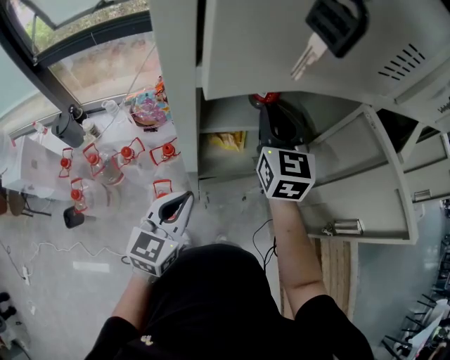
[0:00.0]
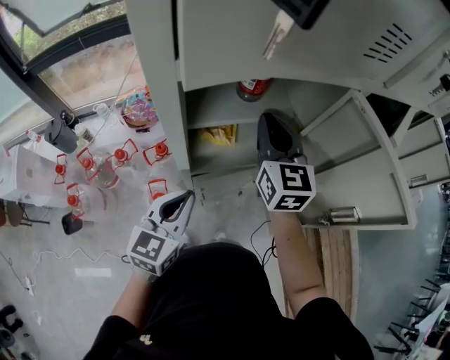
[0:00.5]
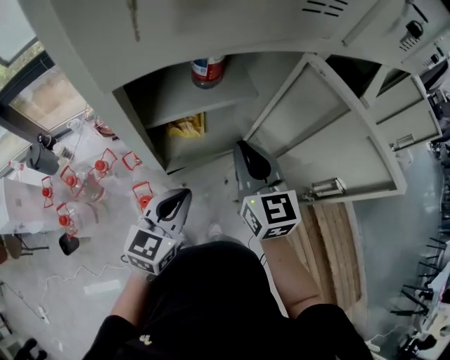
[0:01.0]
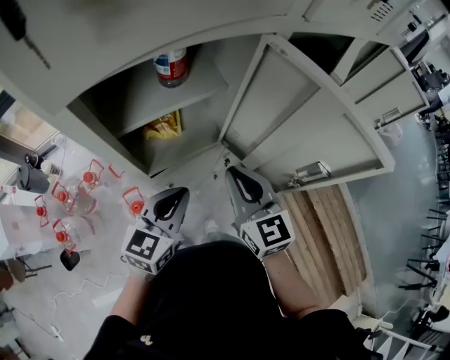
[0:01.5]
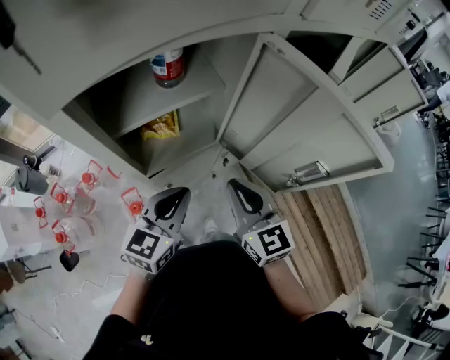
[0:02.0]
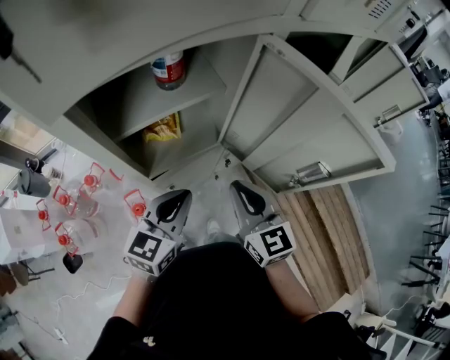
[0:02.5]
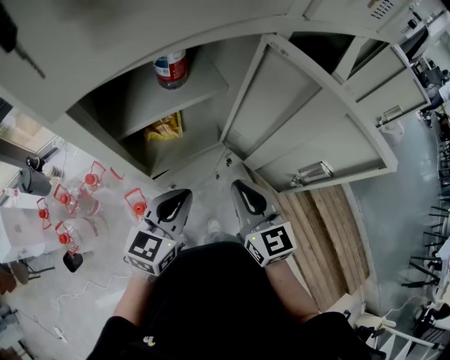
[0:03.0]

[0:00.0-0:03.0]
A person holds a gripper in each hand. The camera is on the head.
0:00.0 to 0:01.5: The left gripper is displaced to the right by some 10 cm, and swivels some 20 degrees, while the right gripper heads backward, to the right and downward, covering about 20 cm.
0:01.5 to 0:03.0: The grippers move only a little.

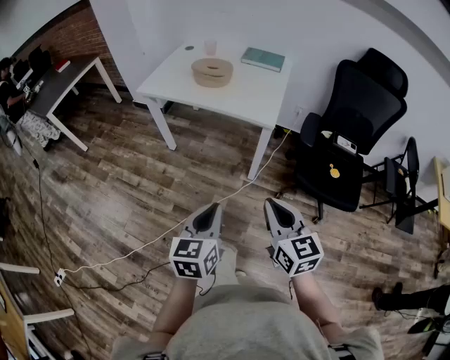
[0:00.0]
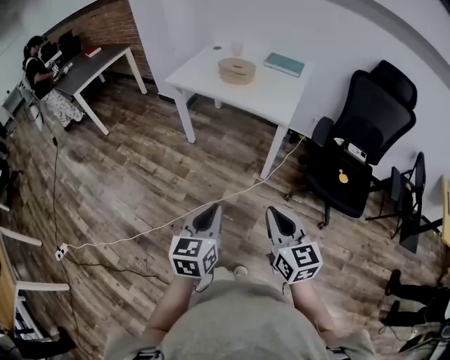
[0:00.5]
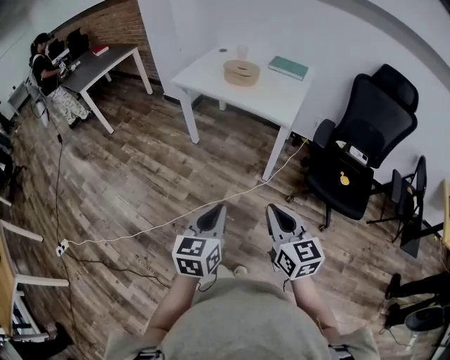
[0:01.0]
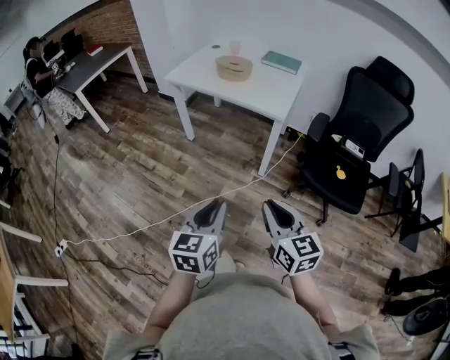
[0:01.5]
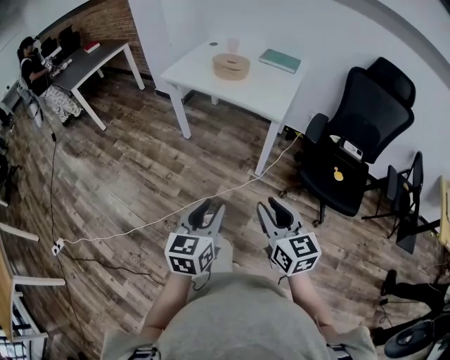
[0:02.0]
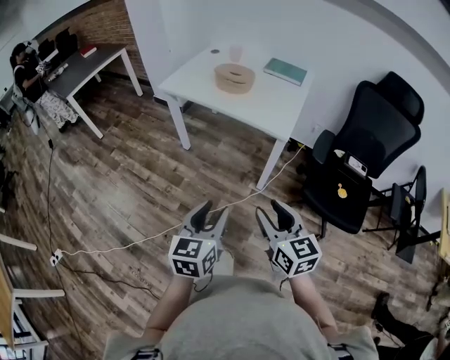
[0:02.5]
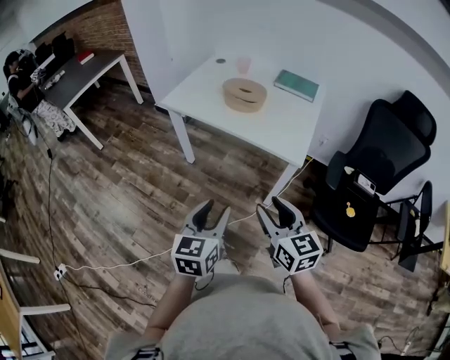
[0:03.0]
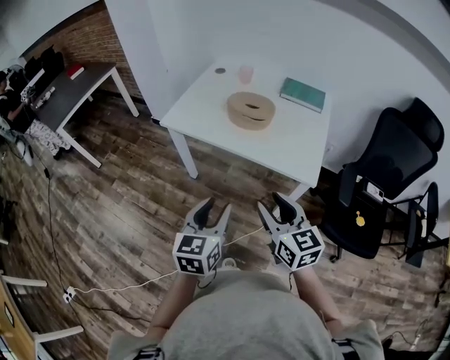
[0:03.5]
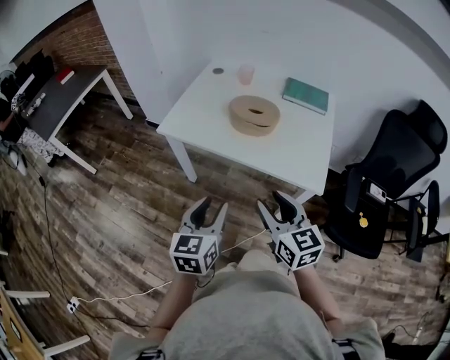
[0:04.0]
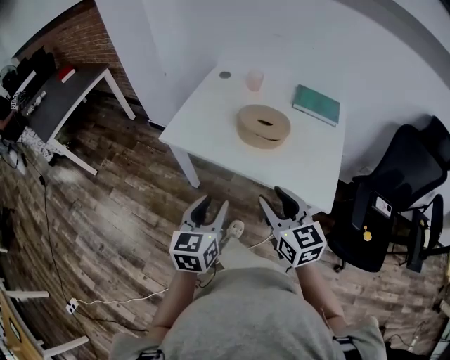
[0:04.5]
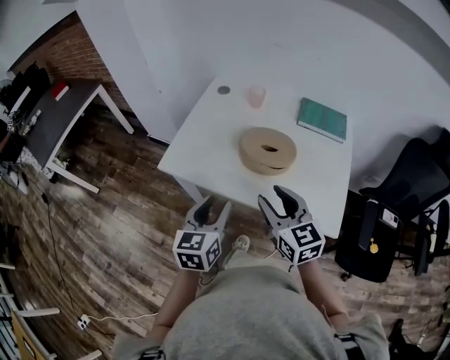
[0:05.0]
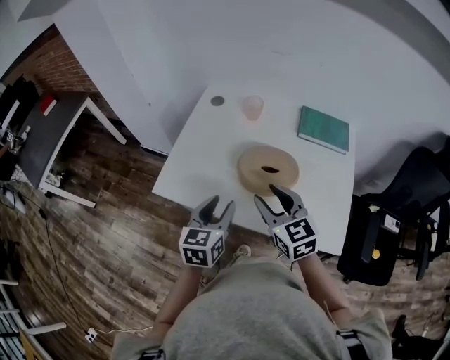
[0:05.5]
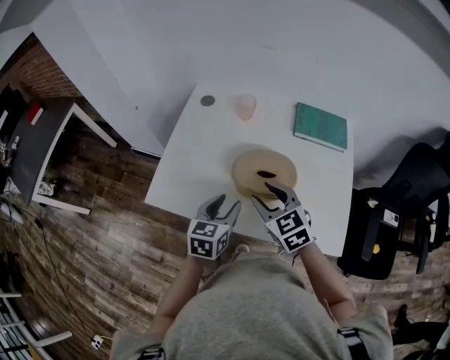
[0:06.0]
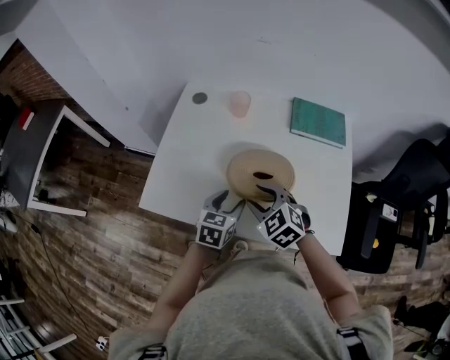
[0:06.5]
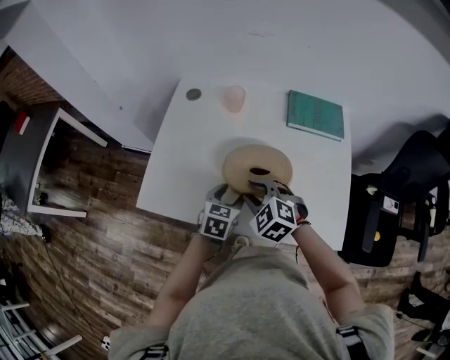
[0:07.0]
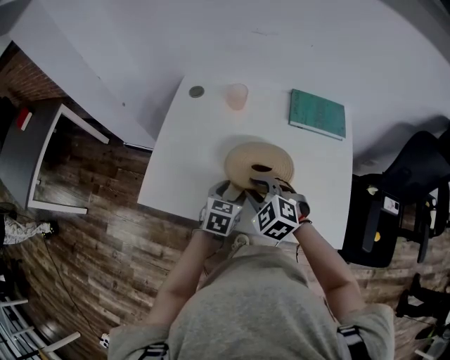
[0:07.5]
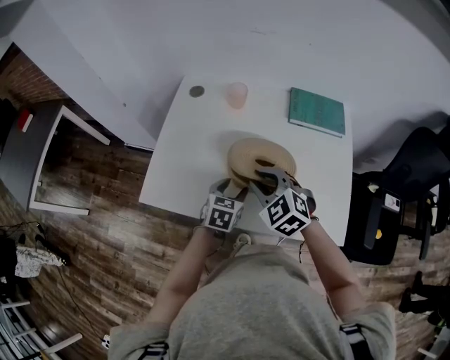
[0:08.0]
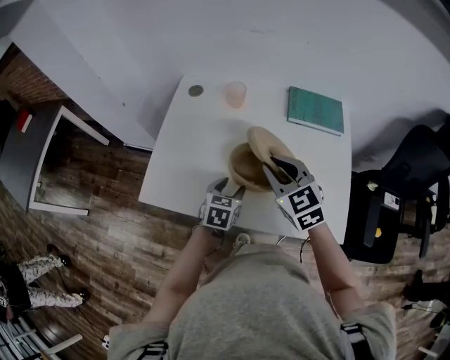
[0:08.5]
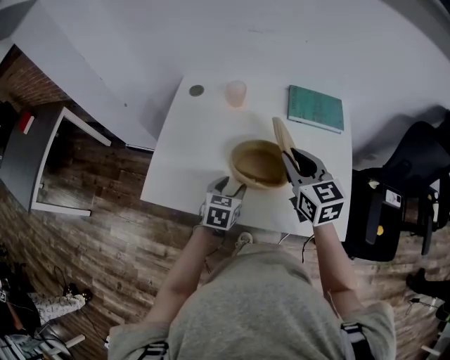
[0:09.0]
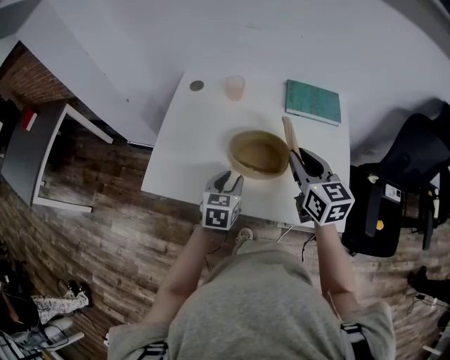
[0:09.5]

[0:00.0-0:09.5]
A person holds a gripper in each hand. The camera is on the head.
0:00.0 to 0:02.0: Both grippers travel together backward, roughly 10 cm. The left gripper opens up; the right gripper opens up.
0:02.0 to 0:04.0: Both grippers are carried forward, about 50 cm.
0:04.0 to 0:05.5: The two grippers go some 30 cm forward.
0:05.5 to 0:07.5: The right gripper heads downward and forward, covering roughly 10 cm, and rotates some 40 degrees, while the left gripper moves downward, forward and to the right, some 20 cm, and changes its angle by some 20 degrees.
0:07.5 to 0:09.5: The right gripper moves to the right and upward, some 20 cm, and rolls clockwise, seen from behind, by about 50 degrees. The left gripper heads upward, covering roughly 5 cm, and closes.

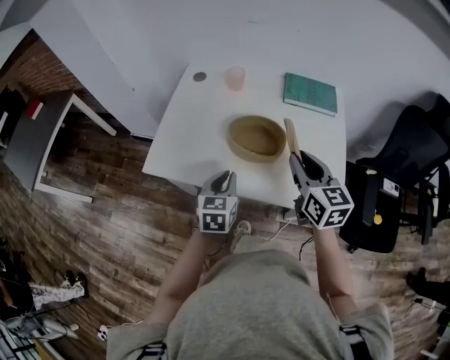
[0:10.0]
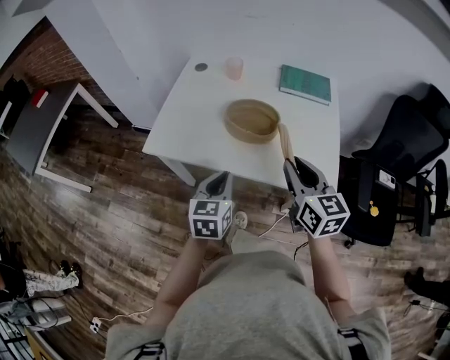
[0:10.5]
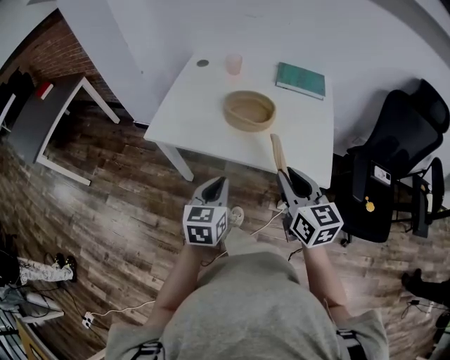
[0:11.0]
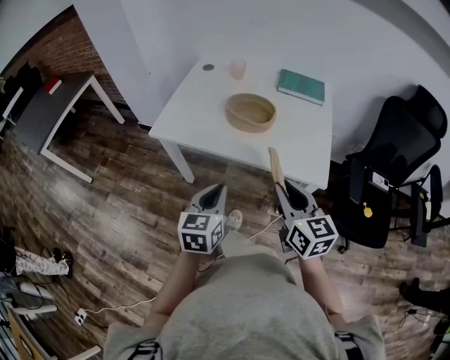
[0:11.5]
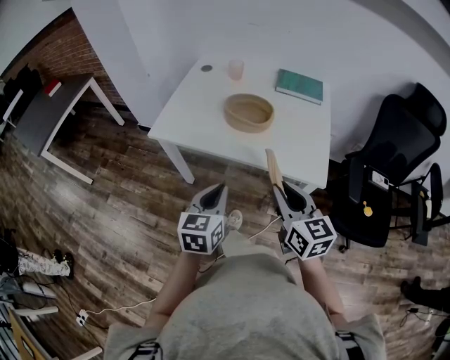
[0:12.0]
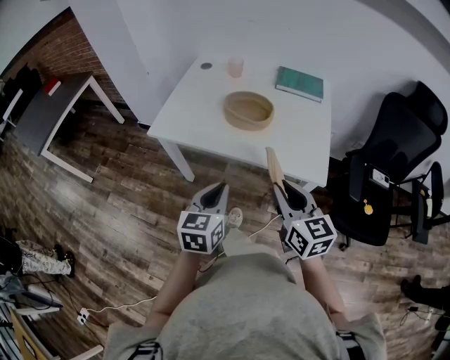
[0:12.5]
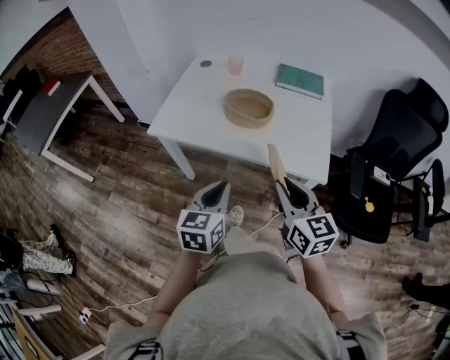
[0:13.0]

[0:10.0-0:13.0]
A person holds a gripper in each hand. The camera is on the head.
0:10.0 to 0:11.5: Both grippers move backward, roughly 25 cm.
0:11.5 to 0:13.0: The grippers stay close to where they were, moving slightly.

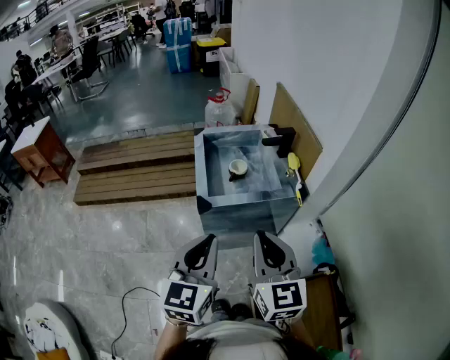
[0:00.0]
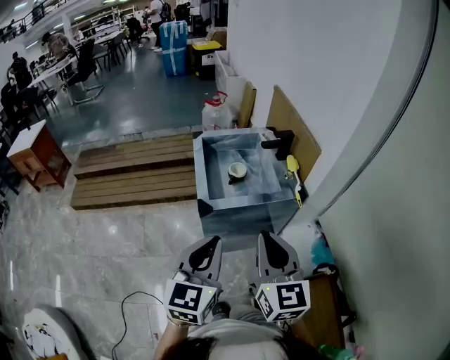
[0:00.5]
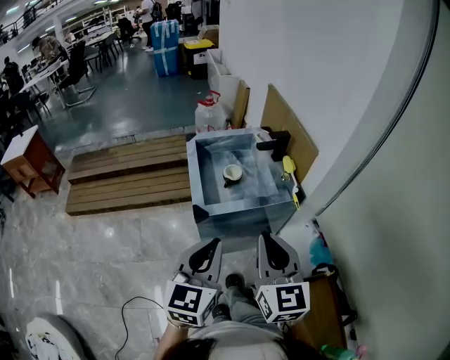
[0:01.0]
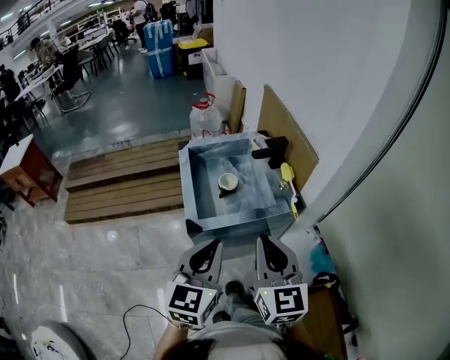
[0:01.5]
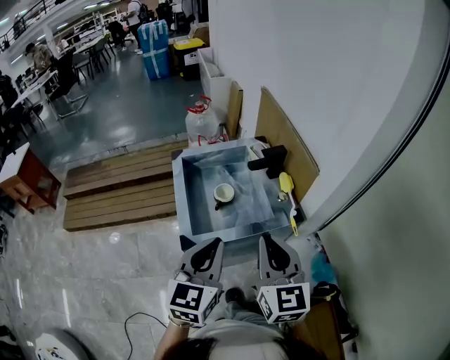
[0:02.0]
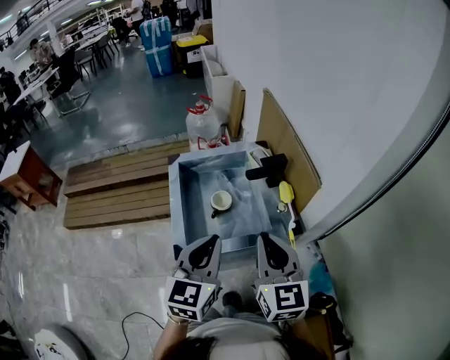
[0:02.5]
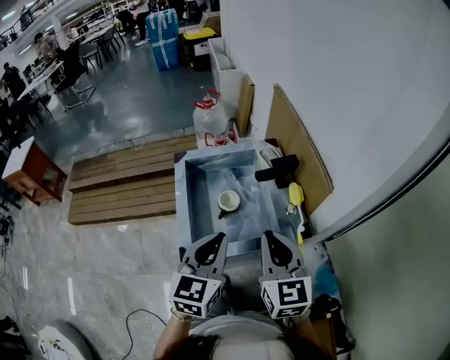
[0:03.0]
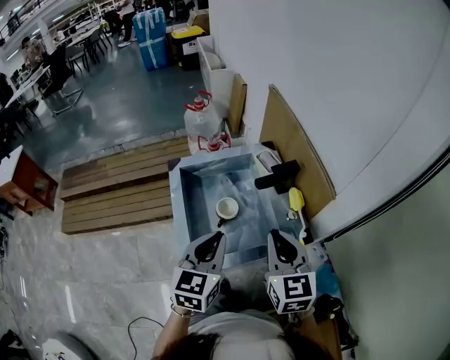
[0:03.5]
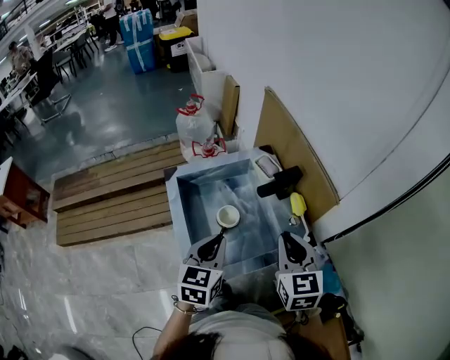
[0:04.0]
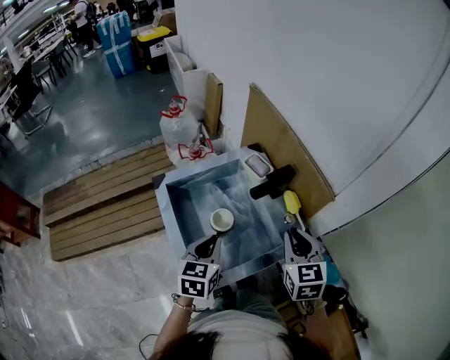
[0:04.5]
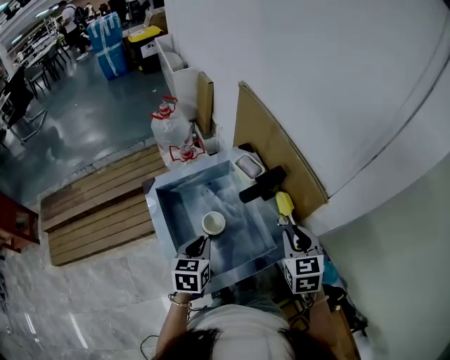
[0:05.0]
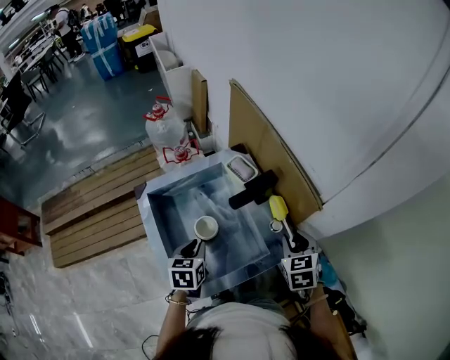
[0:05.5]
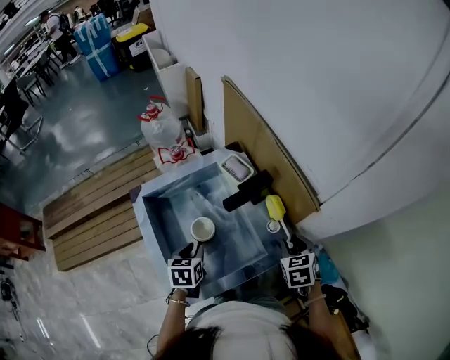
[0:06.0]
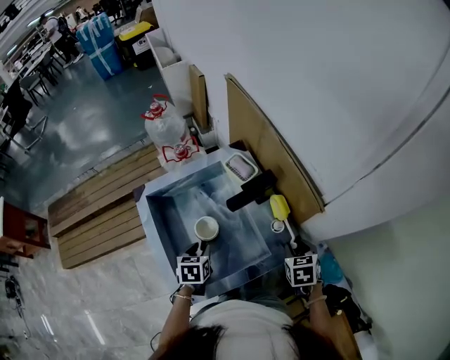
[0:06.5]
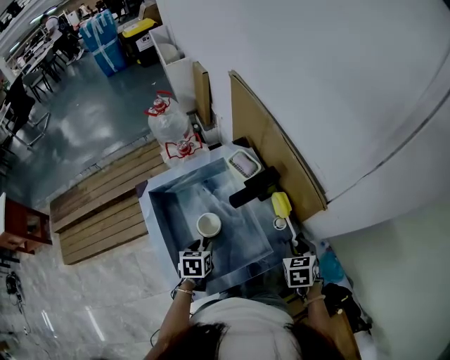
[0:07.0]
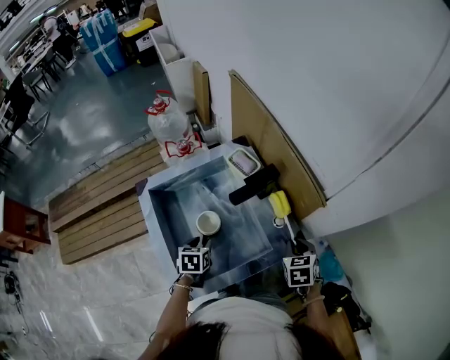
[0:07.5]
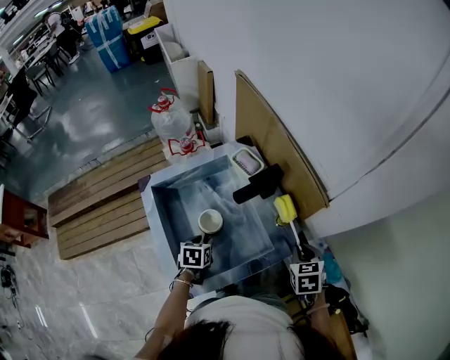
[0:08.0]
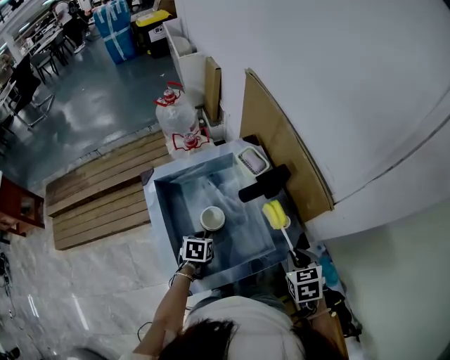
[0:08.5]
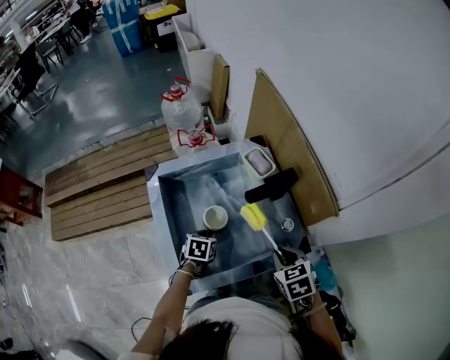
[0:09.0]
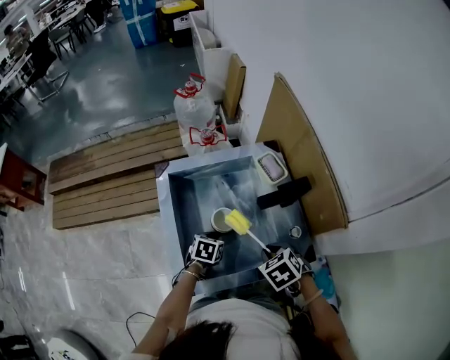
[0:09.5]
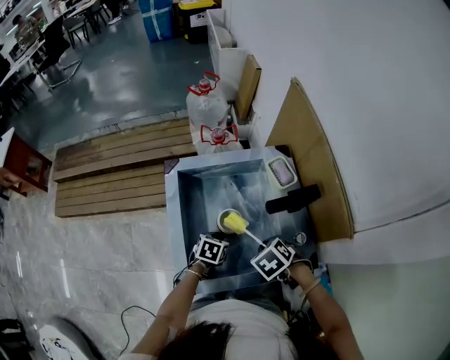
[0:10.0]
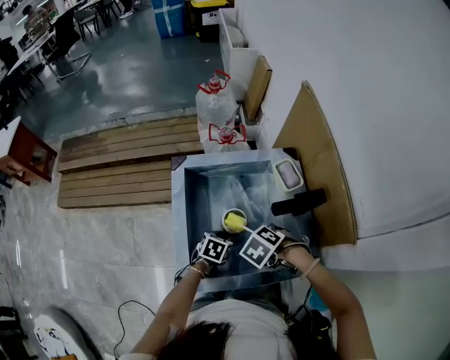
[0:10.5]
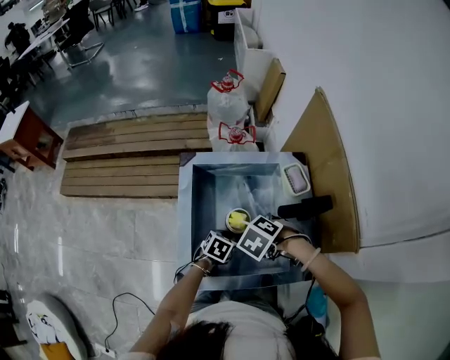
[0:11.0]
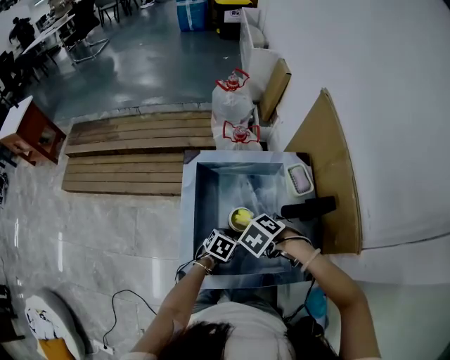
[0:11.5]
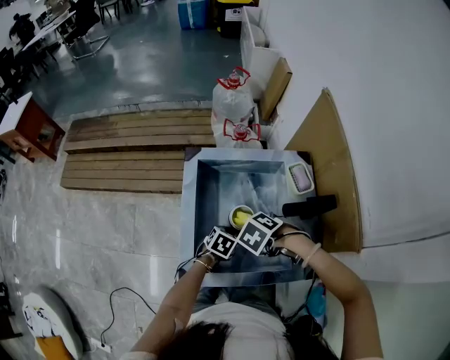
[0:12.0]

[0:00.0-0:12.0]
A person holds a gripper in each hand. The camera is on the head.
0:00.0 to 0:02.0: Both grippers move forward, about 15 cm.
0:02.0 to 0:04.0: The two grippers go about 20 cm forward and downward.
0:04.0 to 0:06.0: The left gripper is displaced downward and forward by roughly 20 cm, changes its angle by about 30 degrees, and opens; the right gripper moves downward, to the right and forward, approximately 25 cm, swivels approximately 30 degrees, and opens its fingers.
0:06.0 to 0:08.0: The right gripper closes up. Meanwhile the left gripper is displaced downward by approximately 5 cm.
0:08.0 to 0:10.0: The right gripper shifts by about 20 cm, and rotates about 50 degrees.
0:10.0 to 0:12.0: The right gripper changes place by some 5 cm, and turns by some 30 degrees.
